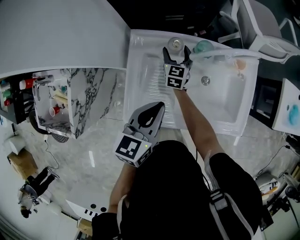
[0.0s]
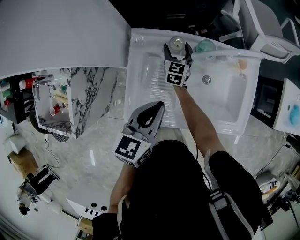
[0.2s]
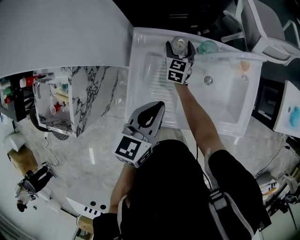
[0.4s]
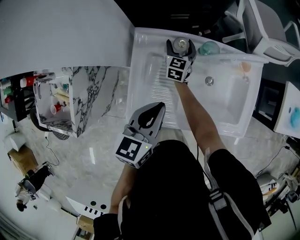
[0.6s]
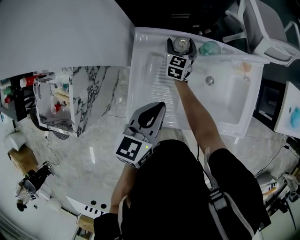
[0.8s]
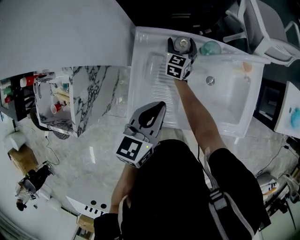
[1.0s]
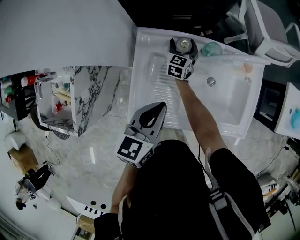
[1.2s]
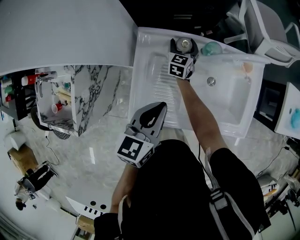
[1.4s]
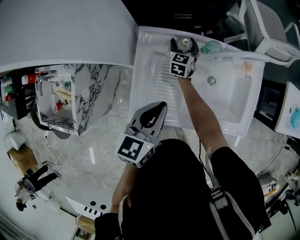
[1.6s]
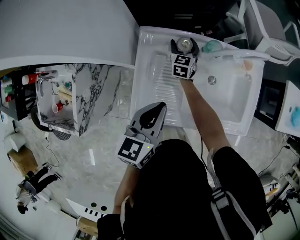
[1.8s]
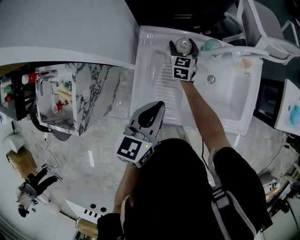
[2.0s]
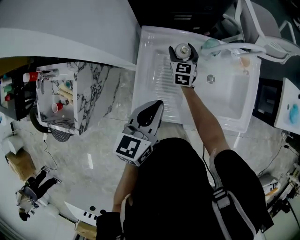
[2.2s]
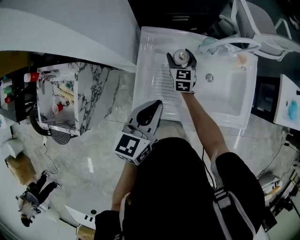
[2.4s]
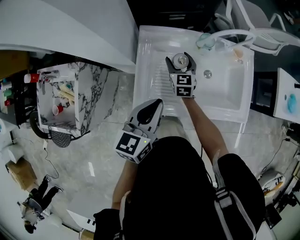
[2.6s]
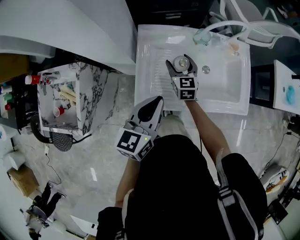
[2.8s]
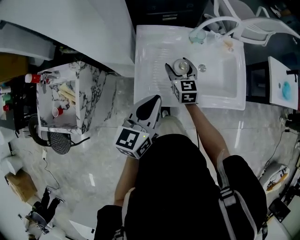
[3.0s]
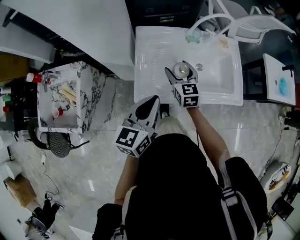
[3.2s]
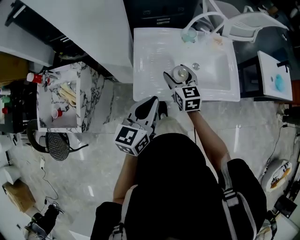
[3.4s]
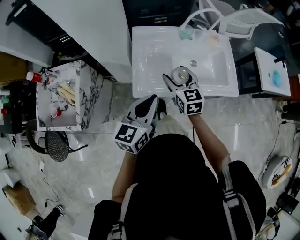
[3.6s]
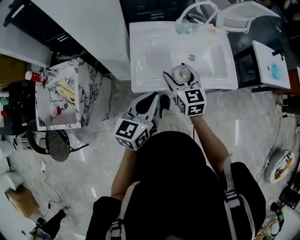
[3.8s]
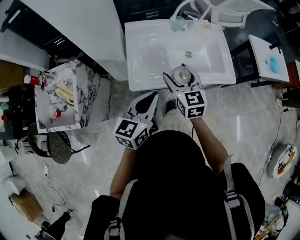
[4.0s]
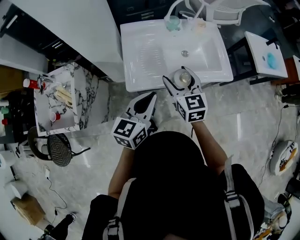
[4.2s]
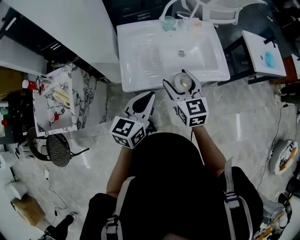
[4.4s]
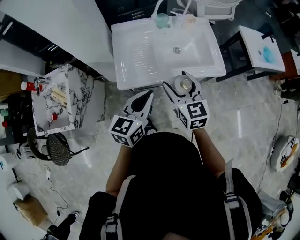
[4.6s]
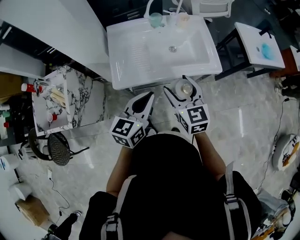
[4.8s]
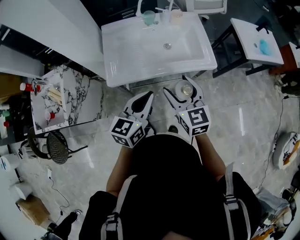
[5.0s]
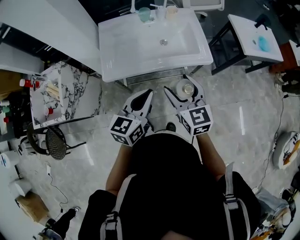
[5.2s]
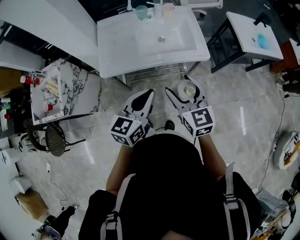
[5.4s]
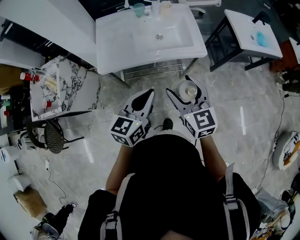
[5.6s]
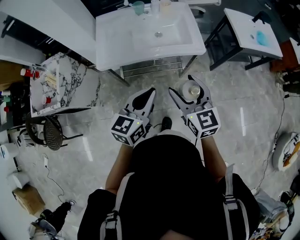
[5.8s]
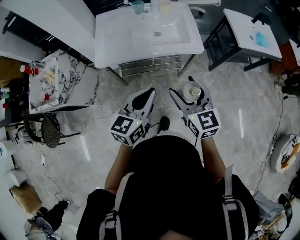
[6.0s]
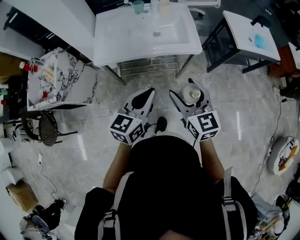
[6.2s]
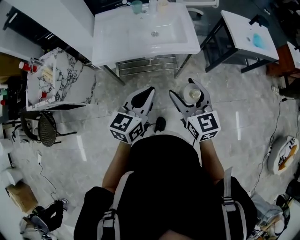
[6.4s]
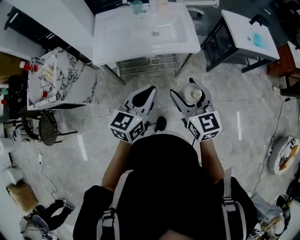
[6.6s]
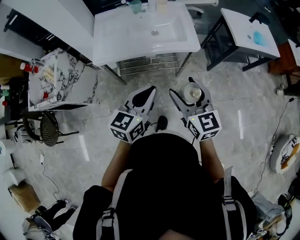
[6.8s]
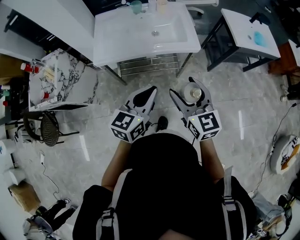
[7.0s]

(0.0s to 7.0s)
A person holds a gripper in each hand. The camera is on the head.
0.0s - 1.4s: The grippers make only small movements.
1.4s - 2.8s: The right gripper goes approximately 20 cm backward and upward. Meanwhile the left gripper travels backward by about 10 cm.
2.8s - 4.2s: The right gripper goes some 30 cm backward and upward. Meanwhile the left gripper moves backward, about 15 cm.
4.2s - 5.6s: The two grippers go roughly 25 cm to the right and backward.
5.6s - 7.0s: The left gripper moves to the right, roughly 5 cm; the right gripper moves to the right and backward, about 10 cm.

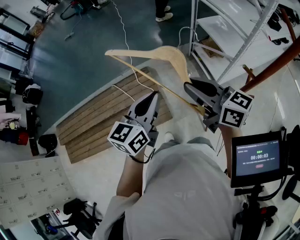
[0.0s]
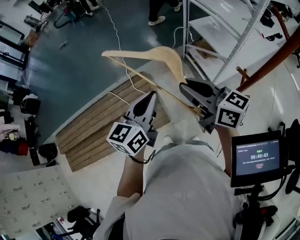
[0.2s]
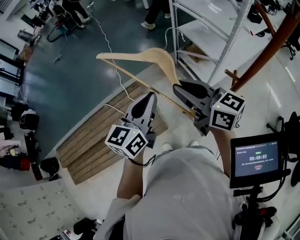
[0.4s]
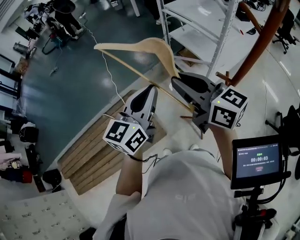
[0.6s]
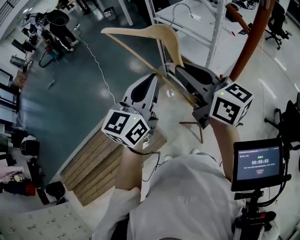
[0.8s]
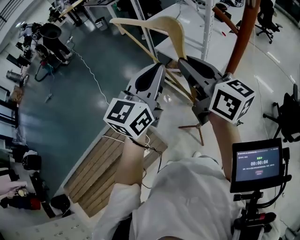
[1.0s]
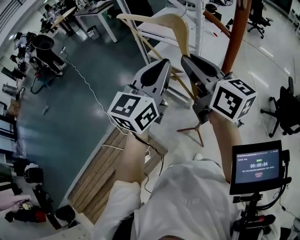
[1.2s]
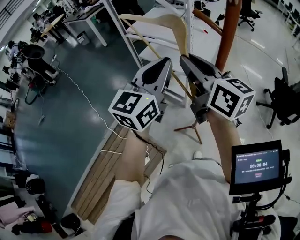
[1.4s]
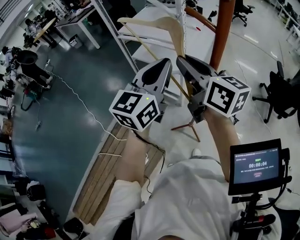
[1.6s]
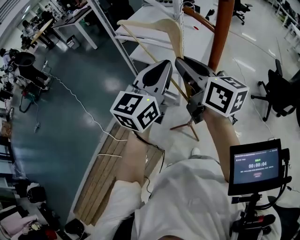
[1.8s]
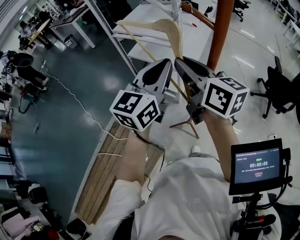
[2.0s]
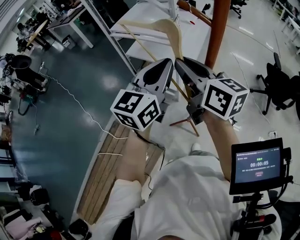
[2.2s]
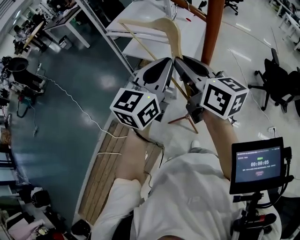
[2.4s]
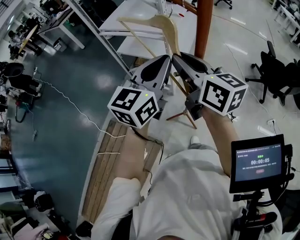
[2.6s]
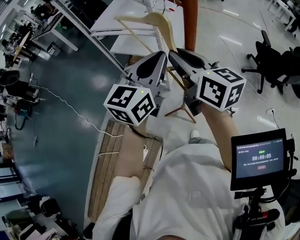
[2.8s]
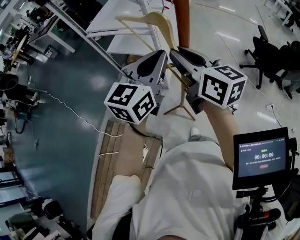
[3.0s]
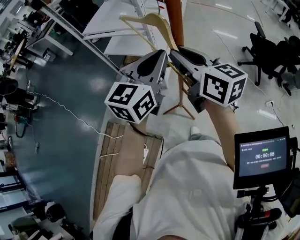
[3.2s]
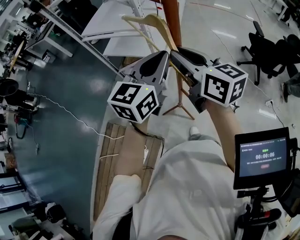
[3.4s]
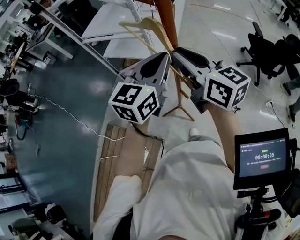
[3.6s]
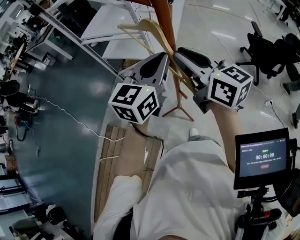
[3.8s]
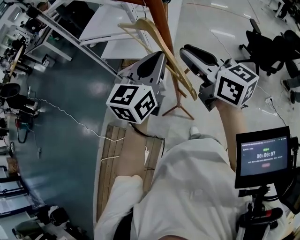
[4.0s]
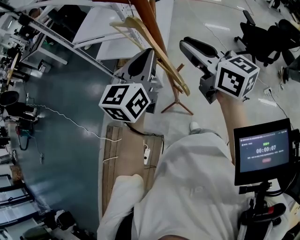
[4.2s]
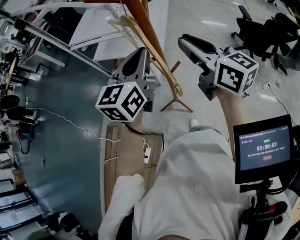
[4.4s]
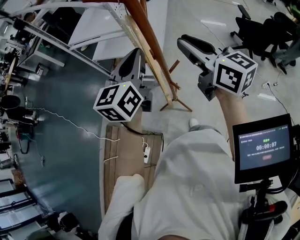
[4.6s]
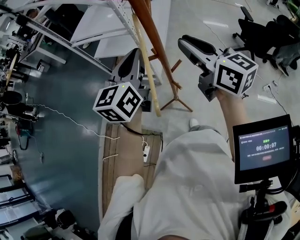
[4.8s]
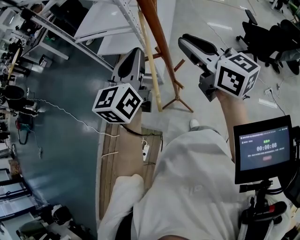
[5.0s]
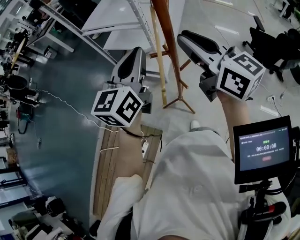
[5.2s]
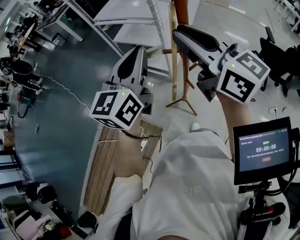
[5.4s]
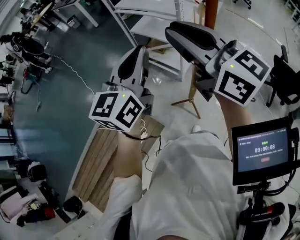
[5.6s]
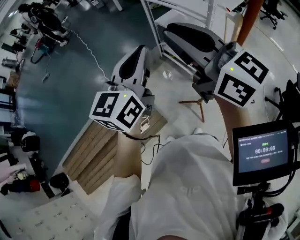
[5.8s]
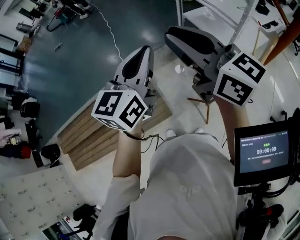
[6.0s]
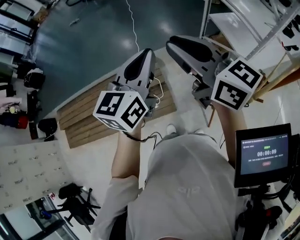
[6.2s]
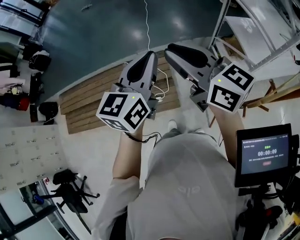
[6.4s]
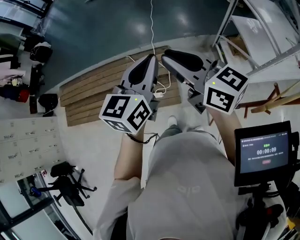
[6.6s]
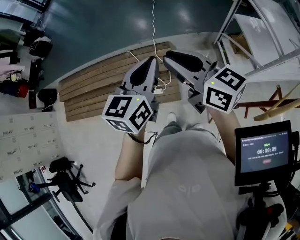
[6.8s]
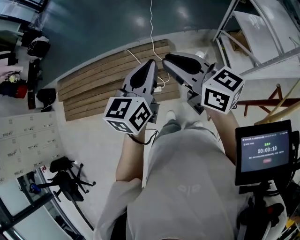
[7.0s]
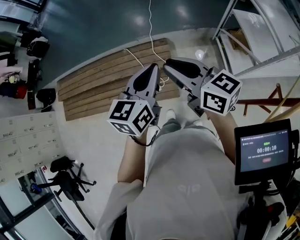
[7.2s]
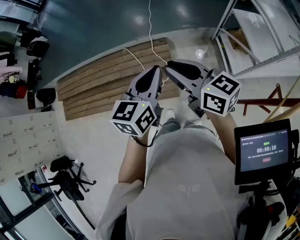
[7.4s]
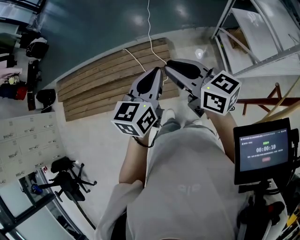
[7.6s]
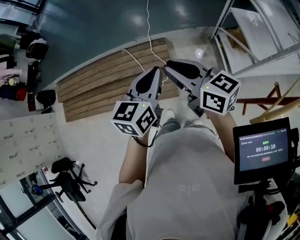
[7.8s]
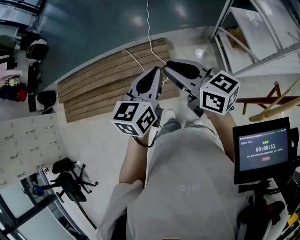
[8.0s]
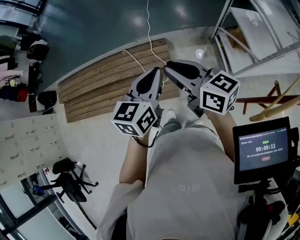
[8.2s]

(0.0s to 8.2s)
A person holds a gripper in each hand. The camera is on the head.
0.0s - 1.6s: The right gripper shifts by some 25 cm, and changes its angle by some 50 degrees. The left gripper moves approximately 35 cm, and turns by approximately 40 degrees.
1.6s - 3.2s: The two grippers go about 10 cm to the right and downward.
3.2s - 5.0s: The right gripper shifts about 5 cm to the right.
5.0s - 6.6s: The two grippers travel together, approximately 50 cm. The right gripper rotates roughly 80 degrees; the left gripper rotates roughly 60 degrees.
6.6s - 8.2s: The grippers make only small movements.

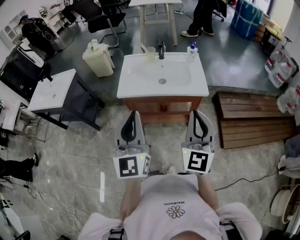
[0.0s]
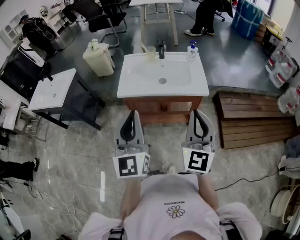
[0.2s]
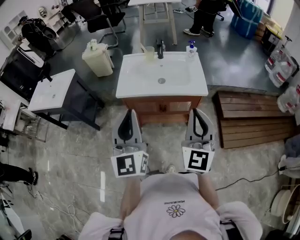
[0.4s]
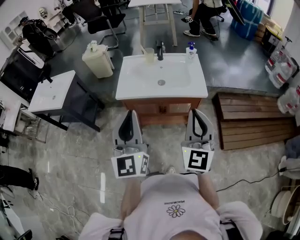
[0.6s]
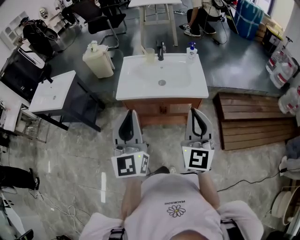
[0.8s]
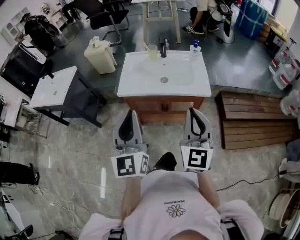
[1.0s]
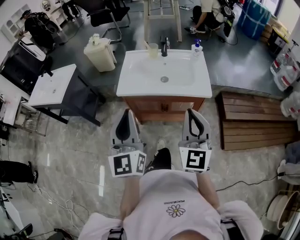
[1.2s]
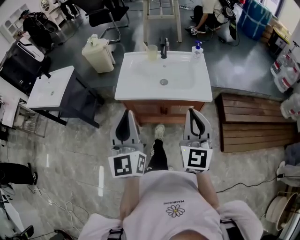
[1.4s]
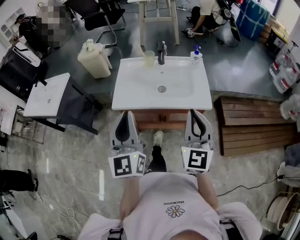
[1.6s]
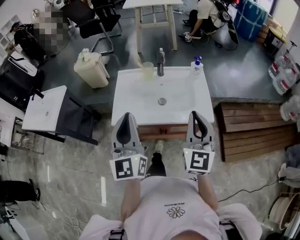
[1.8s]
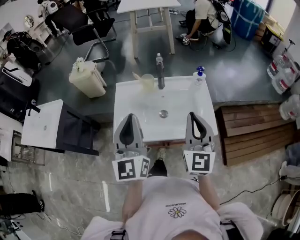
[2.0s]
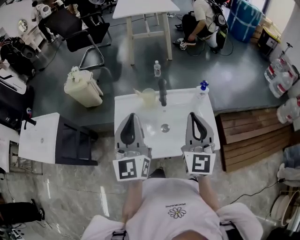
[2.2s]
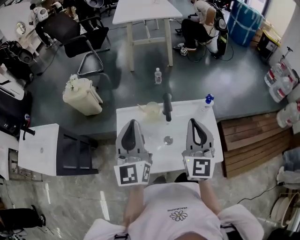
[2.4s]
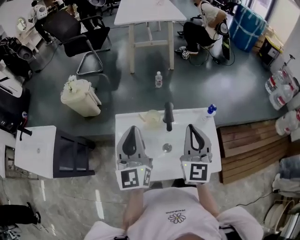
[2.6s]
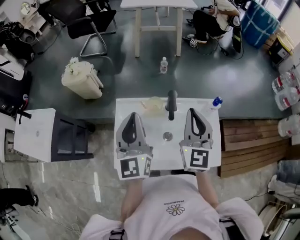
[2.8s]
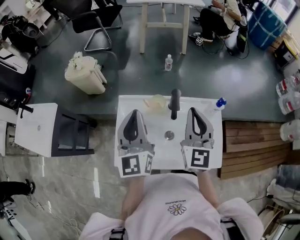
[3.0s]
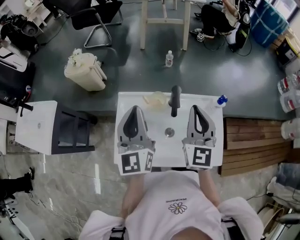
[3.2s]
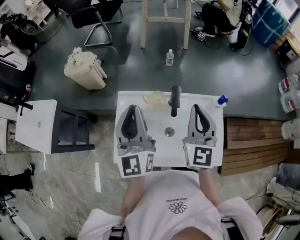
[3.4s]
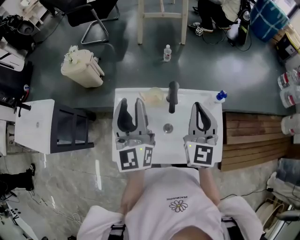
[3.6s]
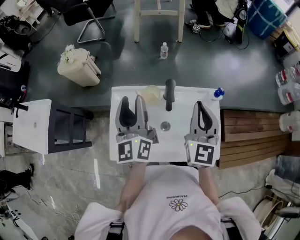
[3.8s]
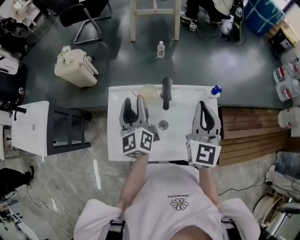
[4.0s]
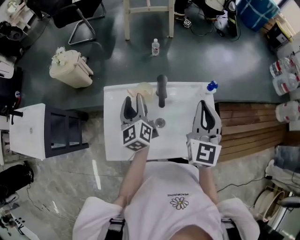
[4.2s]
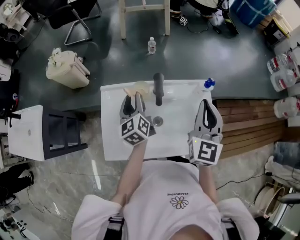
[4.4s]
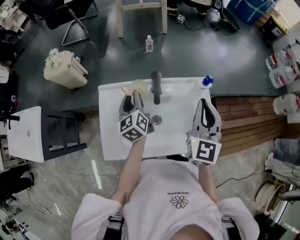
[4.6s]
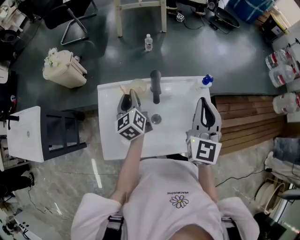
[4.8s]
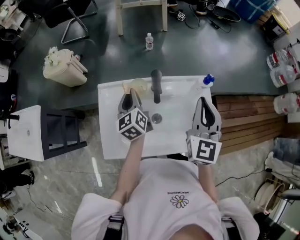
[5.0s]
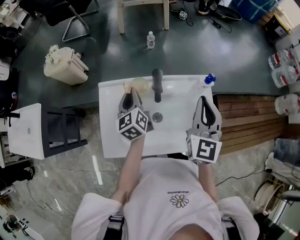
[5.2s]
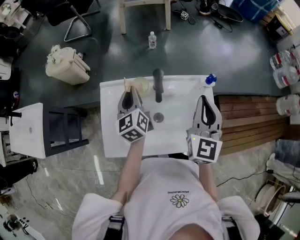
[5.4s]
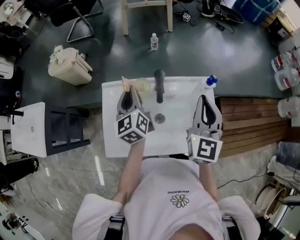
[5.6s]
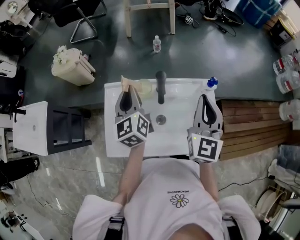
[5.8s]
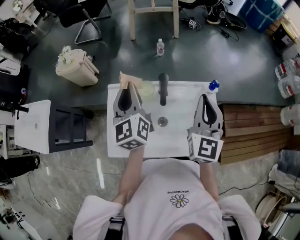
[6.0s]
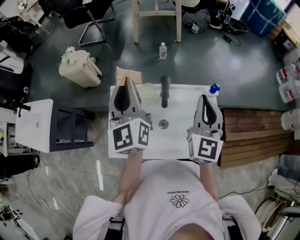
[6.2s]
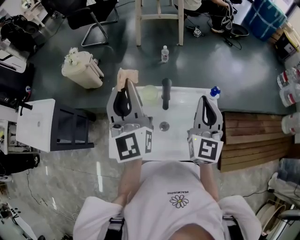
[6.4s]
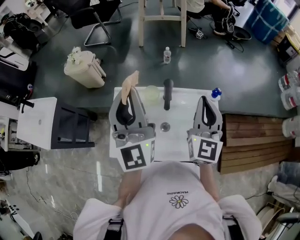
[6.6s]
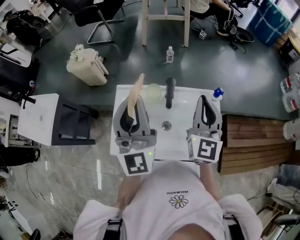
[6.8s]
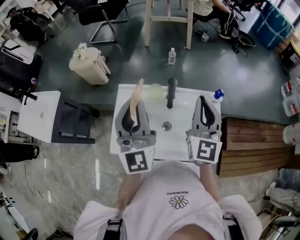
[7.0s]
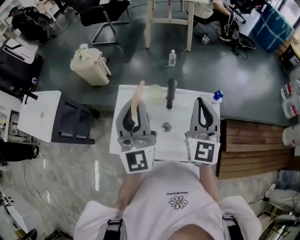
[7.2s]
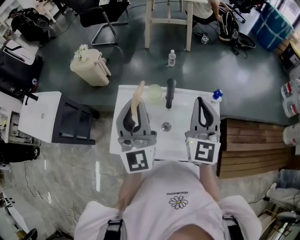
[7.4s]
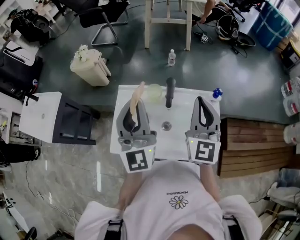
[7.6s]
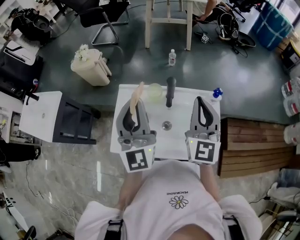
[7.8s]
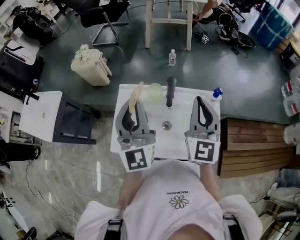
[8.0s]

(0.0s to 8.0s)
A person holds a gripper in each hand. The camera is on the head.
0.0s - 1.6s: Both grippers travel together forward, roughly 15 cm.
1.6s - 3.2s: Both grippers travel together forward, some 40 cm.
3.2s - 4.8s: The right gripper moves to the right, roughly 10 cm; the left gripper heads downward and forward, covering about 20 cm, rotates approximately 30 degrees, and opens and closes again.
4.8s - 6.4s: The left gripper heads upward, covering some 25 cm, and tips its fingers upward by roughly 30 degrees.
6.4s - 8.0s: The left gripper is displaced backward by about 5 cm.
